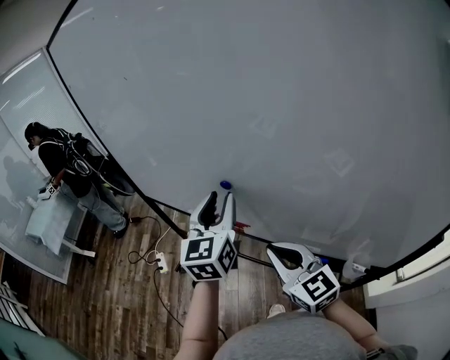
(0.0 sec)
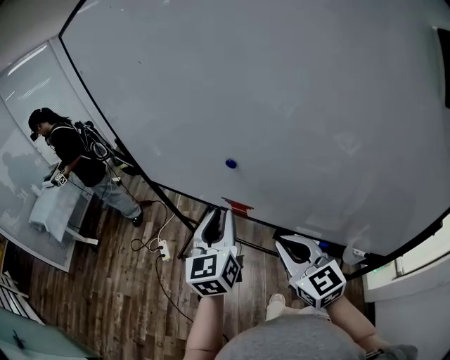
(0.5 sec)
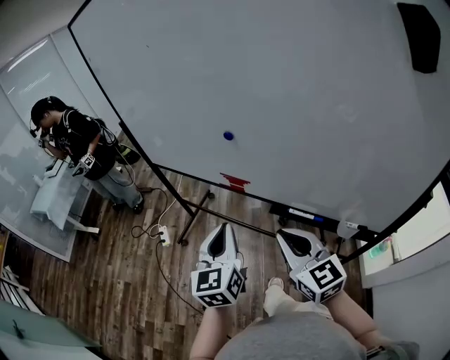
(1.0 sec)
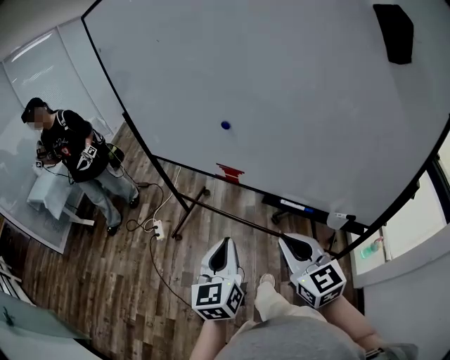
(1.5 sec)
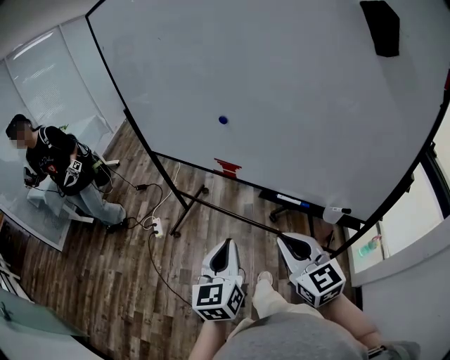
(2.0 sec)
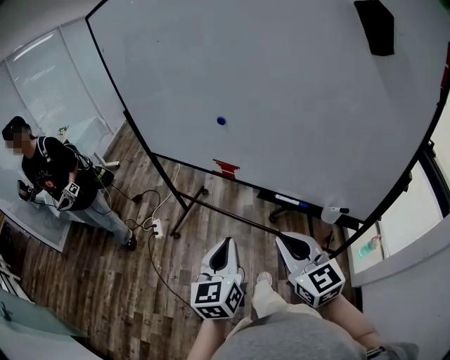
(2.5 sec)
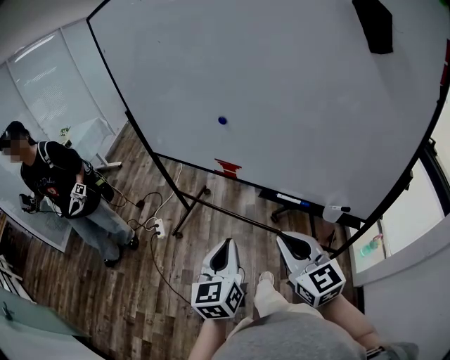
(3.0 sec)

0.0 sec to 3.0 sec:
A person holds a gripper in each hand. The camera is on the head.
0.0 sec to 1.5 sec: The two grippers go some 25 cm backward. The left gripper closes up.
1.5 sec to 3.0 sec: The grippers stay close to where they were, moving slightly.

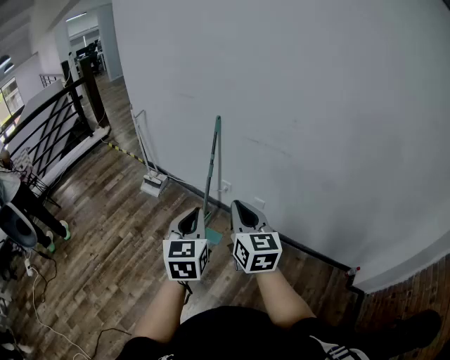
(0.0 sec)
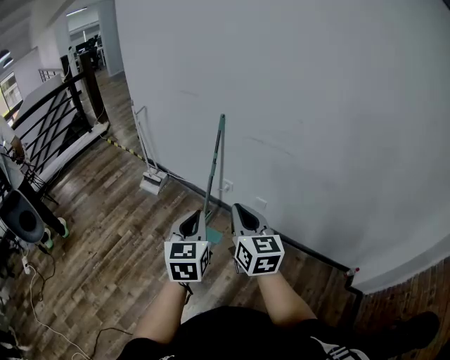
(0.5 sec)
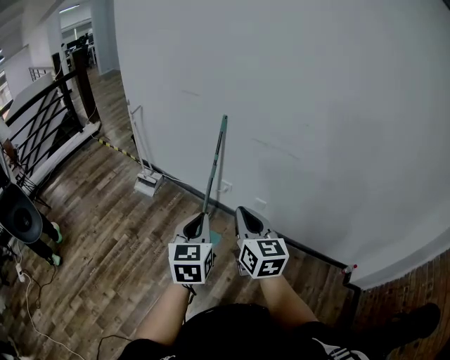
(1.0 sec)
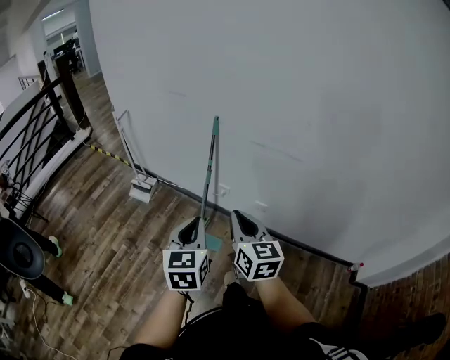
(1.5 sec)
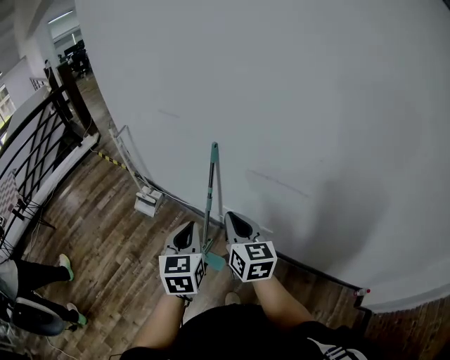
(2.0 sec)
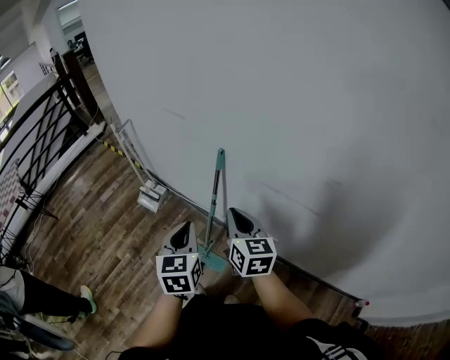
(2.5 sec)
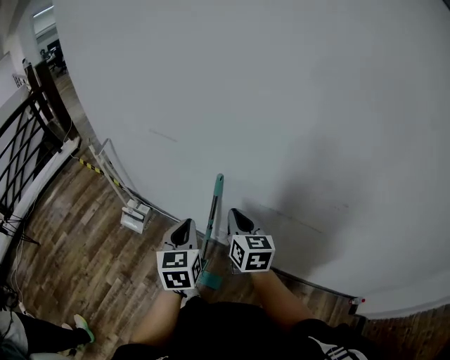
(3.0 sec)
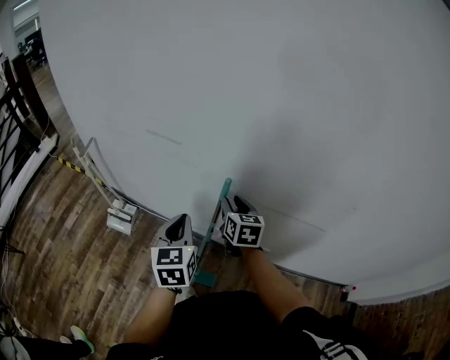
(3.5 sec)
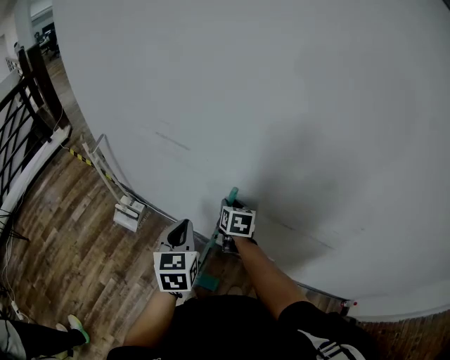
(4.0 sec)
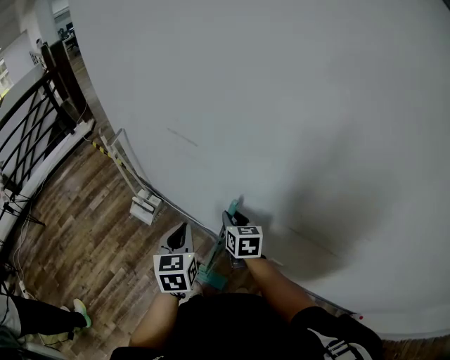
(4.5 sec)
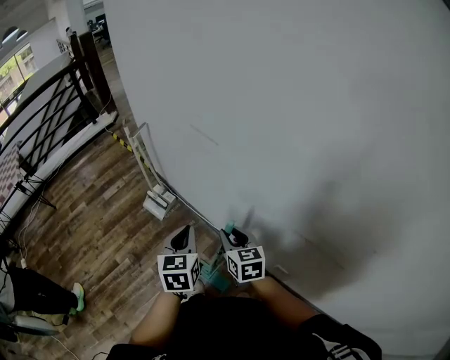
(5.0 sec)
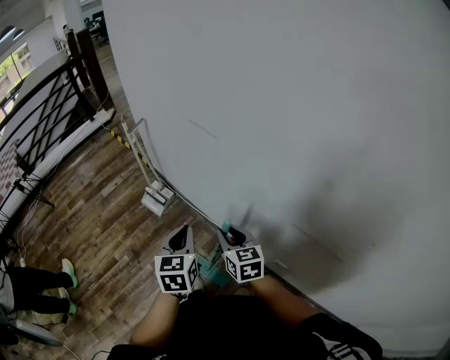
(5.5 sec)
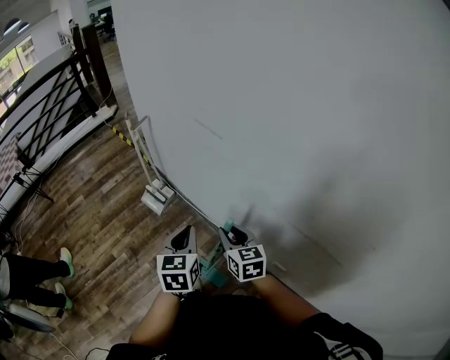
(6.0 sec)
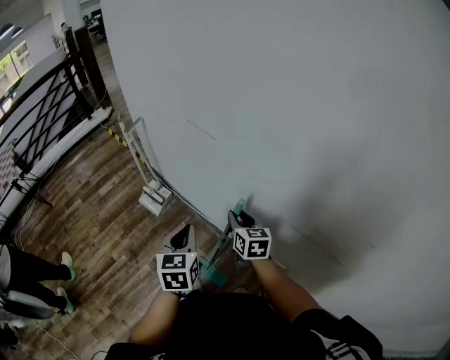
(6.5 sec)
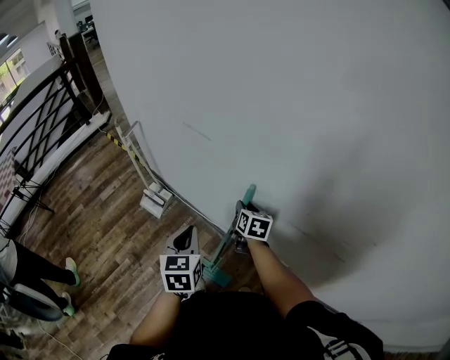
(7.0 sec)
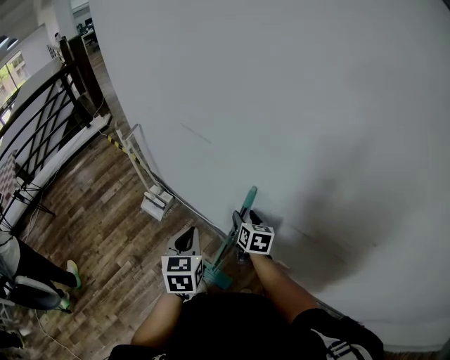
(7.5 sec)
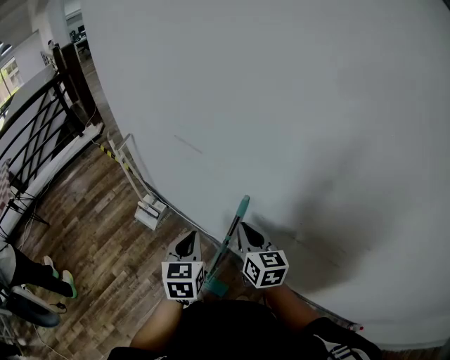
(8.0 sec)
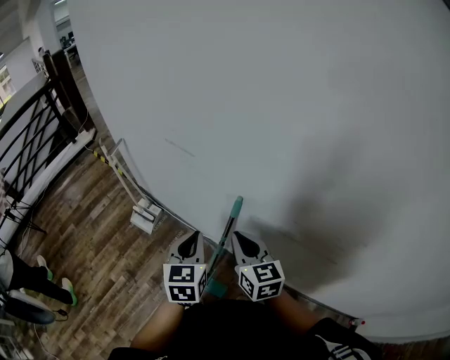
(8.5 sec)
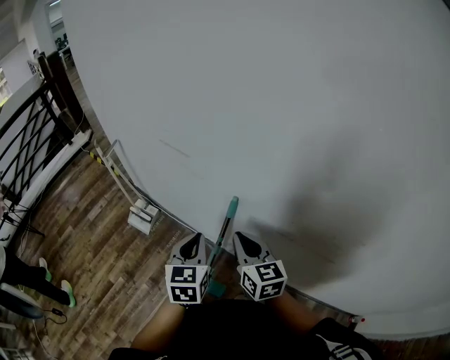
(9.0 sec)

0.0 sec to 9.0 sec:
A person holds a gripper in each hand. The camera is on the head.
0.0 sec to 2.0 sec: Both grippers move forward, approximately 30 cm.
2.0 sec to 4.5 sec: The left gripper goes approximately 25 cm forward and to the left. The right gripper heads forward and downward, covering some 30 cm, turns by about 20 degrees, and opens up.
4.5 sec to 7.0 sec: The right gripper travels backward and back again, some 10 cm each way.
7.0 sec to 9.0 sec: The right gripper moves upward and backward, about 15 cm, swivels about 20 degrees, and closes. Meanwhile the left gripper is displaced to the right by about 5 cm.

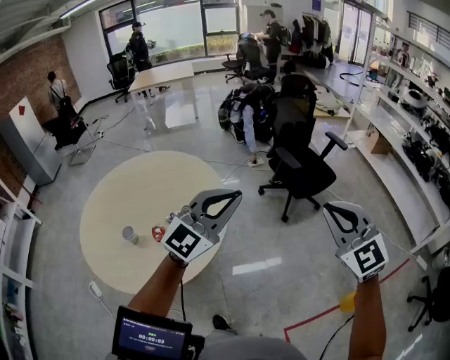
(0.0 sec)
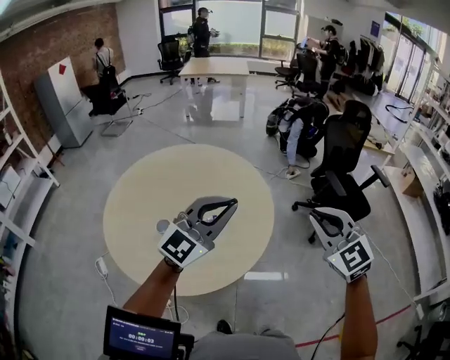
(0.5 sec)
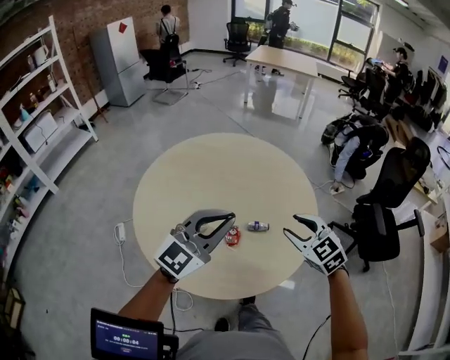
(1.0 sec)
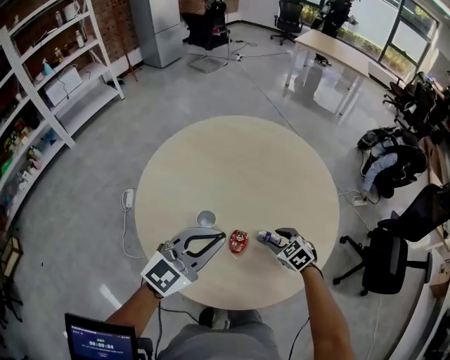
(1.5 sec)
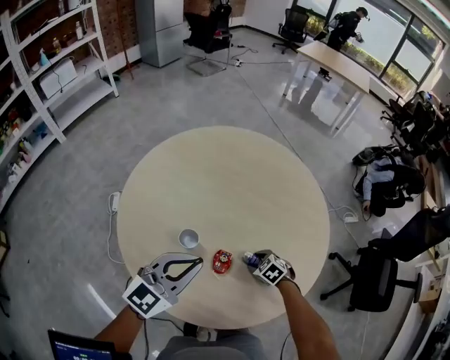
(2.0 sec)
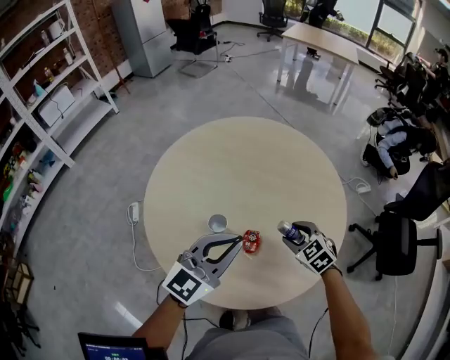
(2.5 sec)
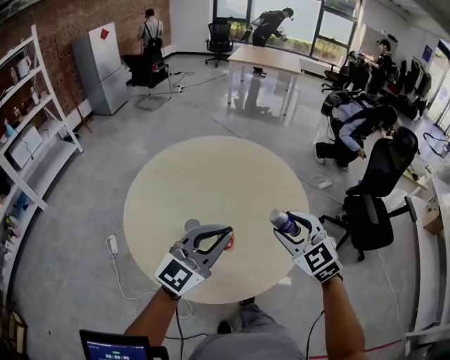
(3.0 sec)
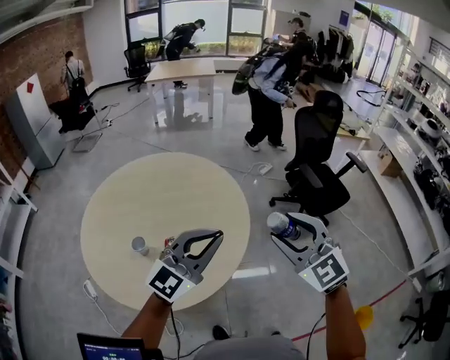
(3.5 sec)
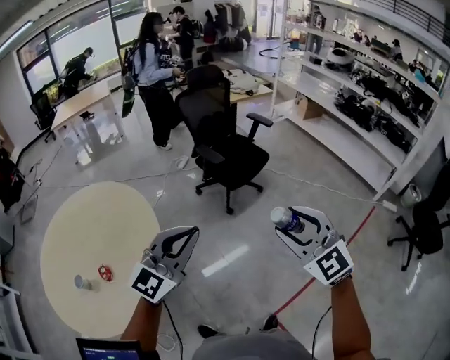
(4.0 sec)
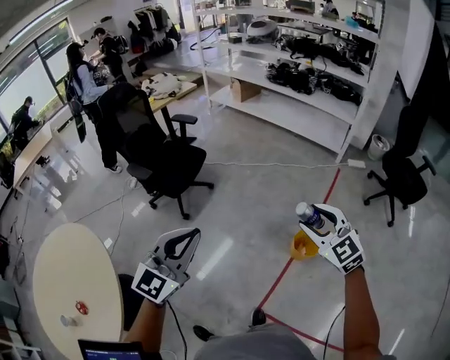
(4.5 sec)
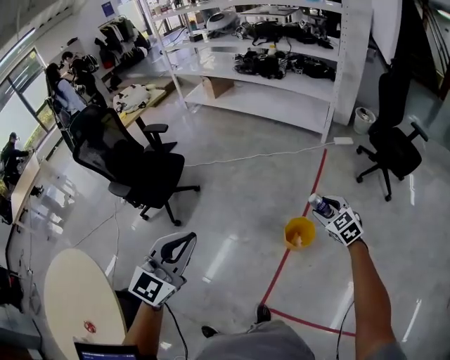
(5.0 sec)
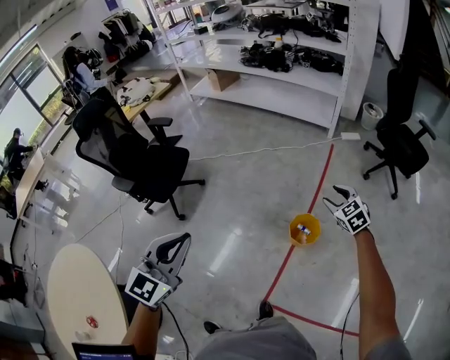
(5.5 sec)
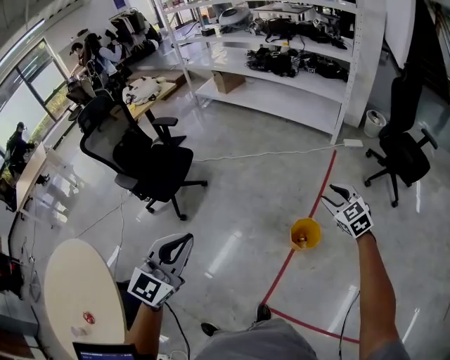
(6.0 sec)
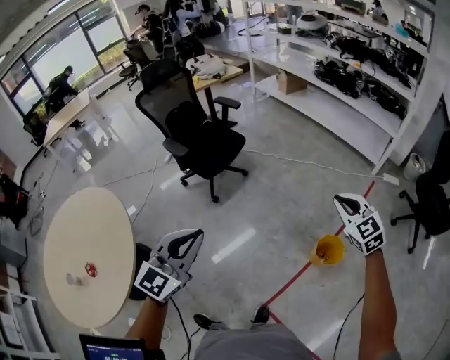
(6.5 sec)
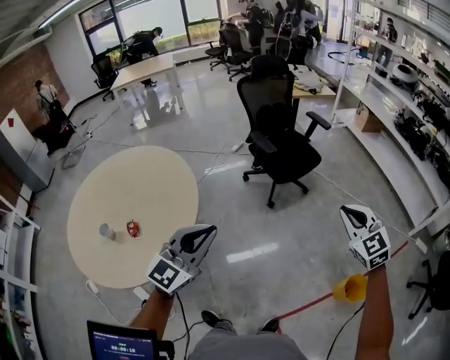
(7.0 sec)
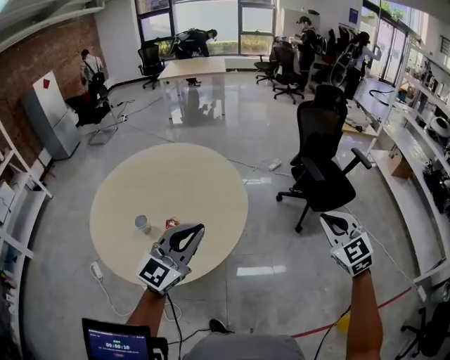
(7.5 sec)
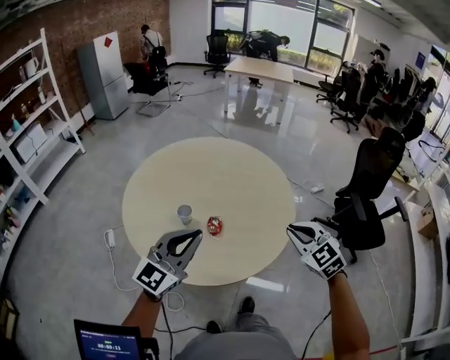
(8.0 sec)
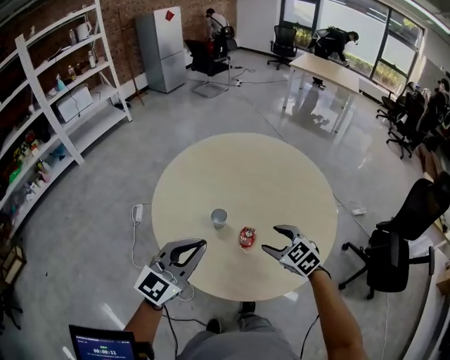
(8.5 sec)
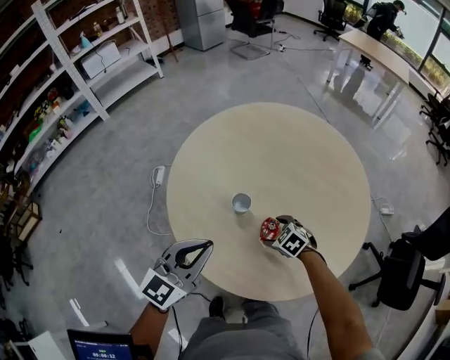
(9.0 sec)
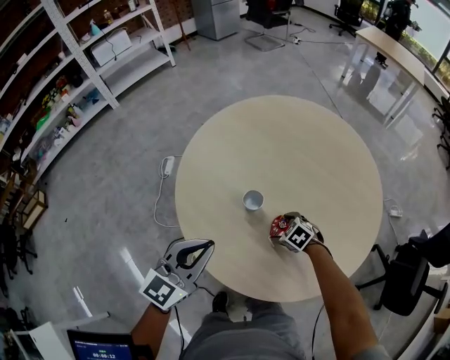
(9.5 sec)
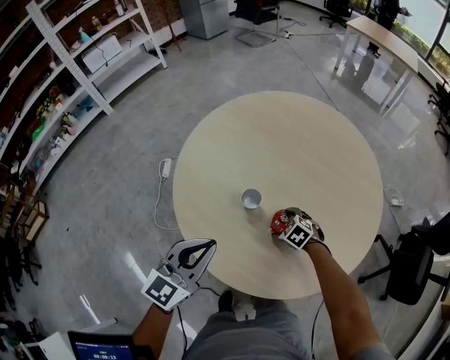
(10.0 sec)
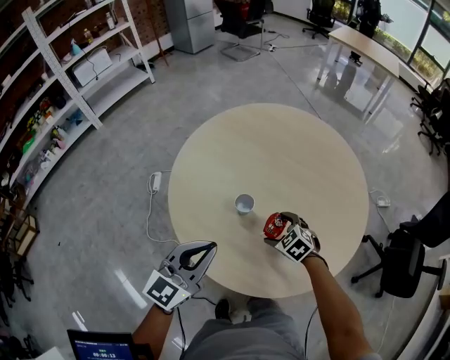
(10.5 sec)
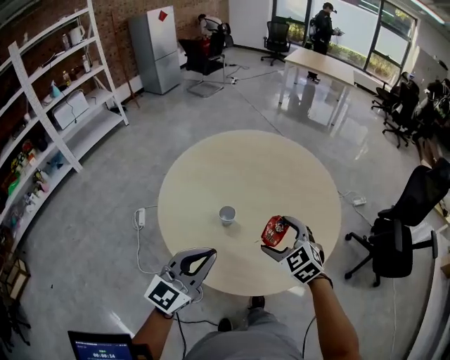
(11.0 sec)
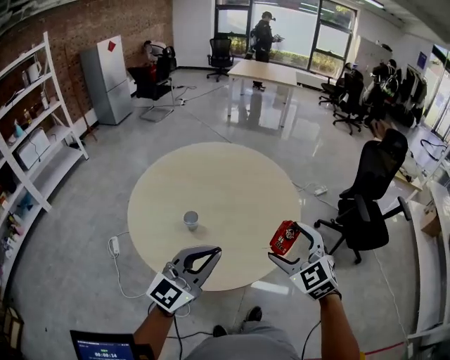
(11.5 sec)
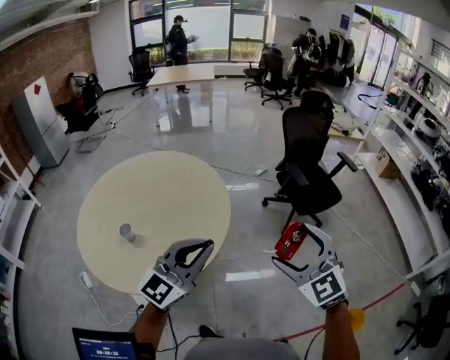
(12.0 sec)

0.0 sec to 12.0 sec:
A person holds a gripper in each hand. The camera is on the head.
0.0 sec to 2.0 sec: The pair of grippers is taken approximately 60 cm. The right gripper tilts its fingers approximately 60 degrees downward, and opens its fingers. The left gripper swivels roughly 60 degrees.
2.0 sec to 4.0 sec: Both grippers are carried roughly 70 cm. The left gripper changes its angle by about 60 degrees. Meanwhile the right gripper tilts its fingers some 50 degrees upward.
4.0 sec to 6.0 sec: The pair of grippers is taken some 60 cm. The left gripper turns by some 20 degrees; the right gripper changes its angle by about 50 degrees.
6.0 sec to 8.0 sec: The pair of grippers is taken approximately 1 m. The left gripper turns by approximately 70 degrees; the right gripper rotates approximately 90 degrees, and closes its fingers.
8.0 sec to 10.0 sec: The left gripper shifts by about 20 cm, and turns by roughly 30 degrees. Meanwhile the right gripper is displaced downward by roughly 35 cm, tilts its fingers some 40 degrees downward, and opens up.
10.0 sec to 12.0 sec: The right gripper shifts by roughly 70 cm, and points its fingers approximately 50 degrees further upward. Meanwhile the left gripper shifts by approximately 40 cm, and changes its angle by approximately 60 degrees.

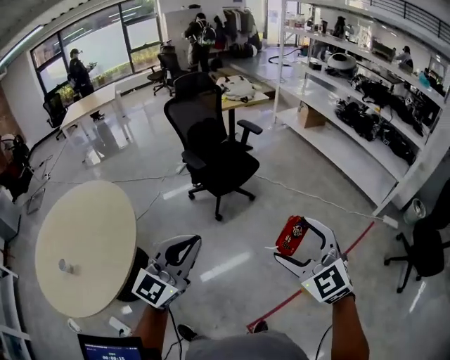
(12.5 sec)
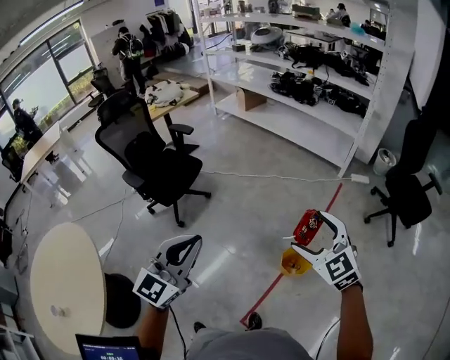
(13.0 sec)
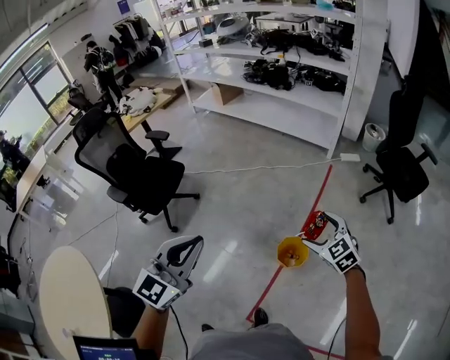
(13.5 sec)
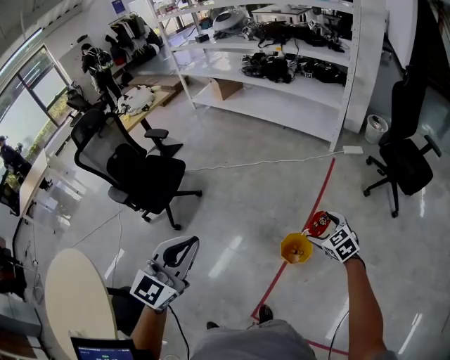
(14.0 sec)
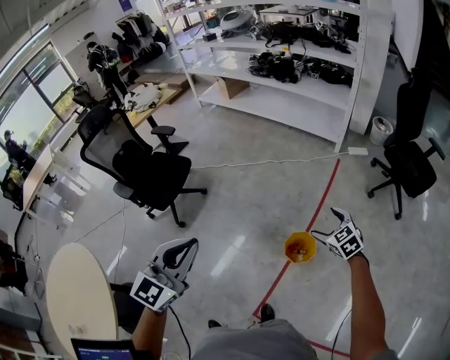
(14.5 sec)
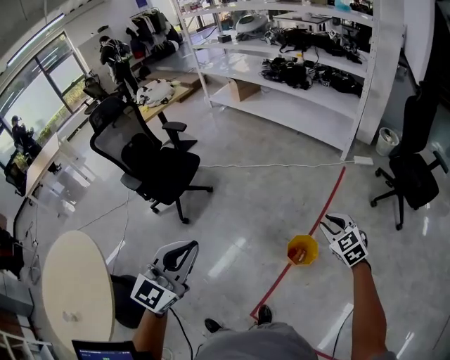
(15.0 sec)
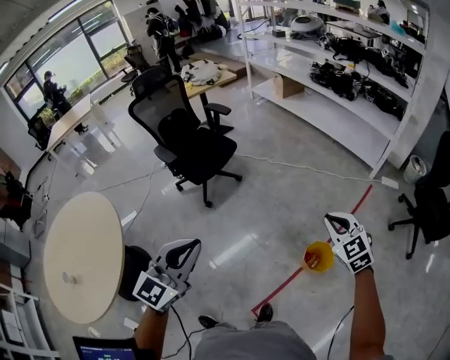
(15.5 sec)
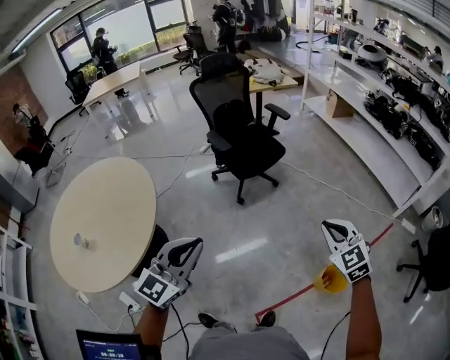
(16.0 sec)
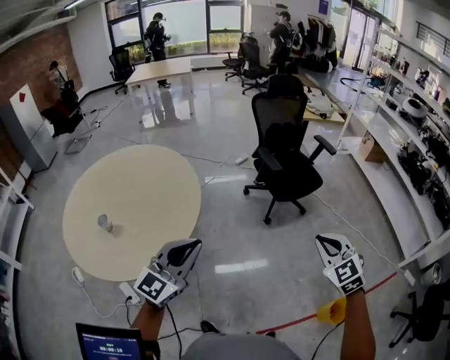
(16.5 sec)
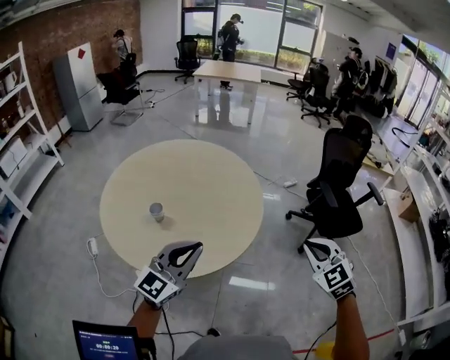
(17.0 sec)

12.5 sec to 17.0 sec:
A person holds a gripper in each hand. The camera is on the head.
12.5 sec to 14.5 sec: The left gripper ends up some 30 cm from where it was, and turns by some 30 degrees, while the right gripper moves about 50 cm, and changes its angle by approximately 50 degrees.
14.5 sec to 17.0 sec: The two grippers travel together, some 90 cm. The right gripper swivels about 70 degrees, and closes up. The left gripper swivels approximately 60 degrees.
